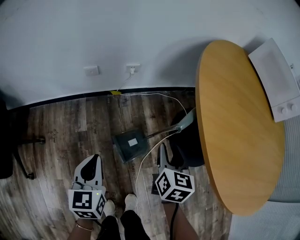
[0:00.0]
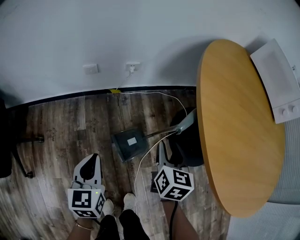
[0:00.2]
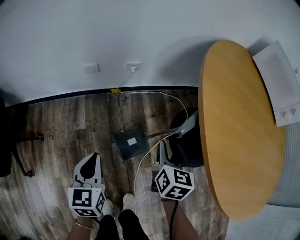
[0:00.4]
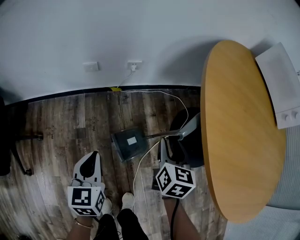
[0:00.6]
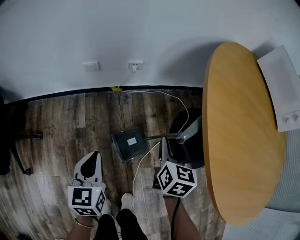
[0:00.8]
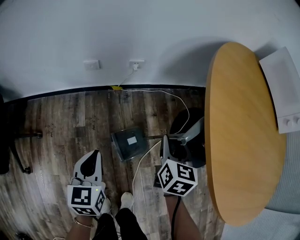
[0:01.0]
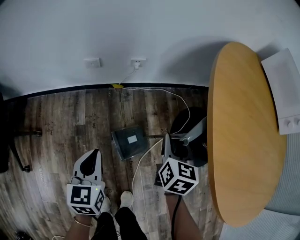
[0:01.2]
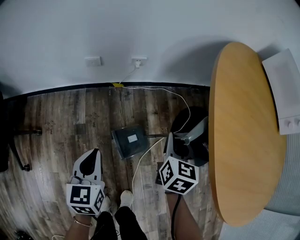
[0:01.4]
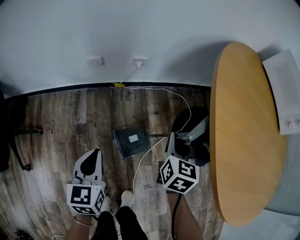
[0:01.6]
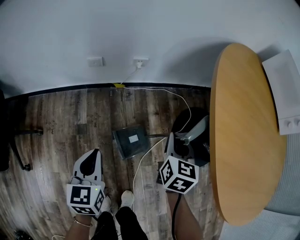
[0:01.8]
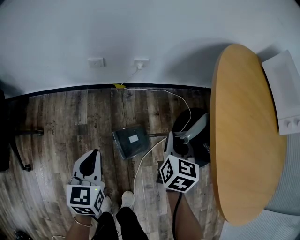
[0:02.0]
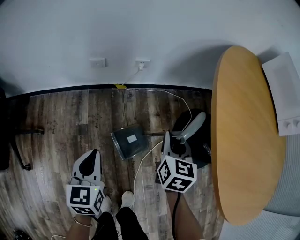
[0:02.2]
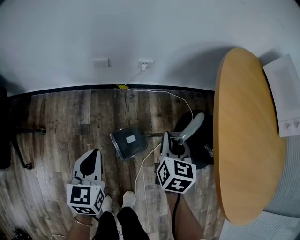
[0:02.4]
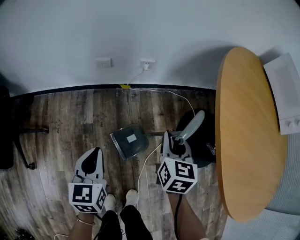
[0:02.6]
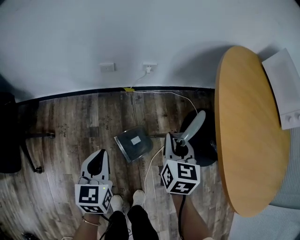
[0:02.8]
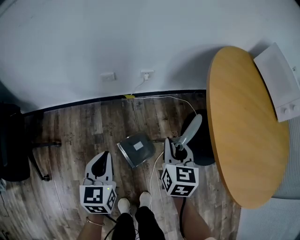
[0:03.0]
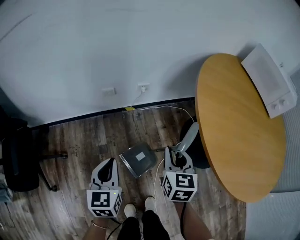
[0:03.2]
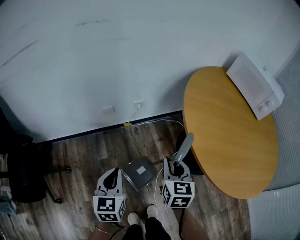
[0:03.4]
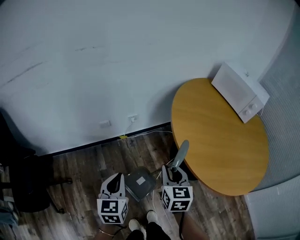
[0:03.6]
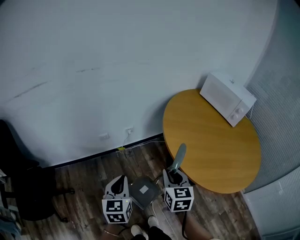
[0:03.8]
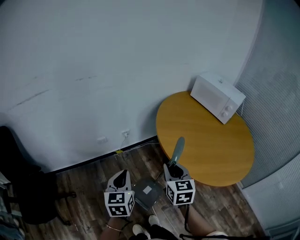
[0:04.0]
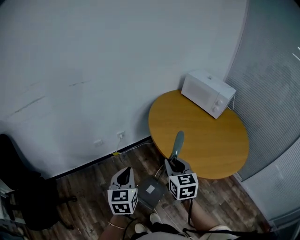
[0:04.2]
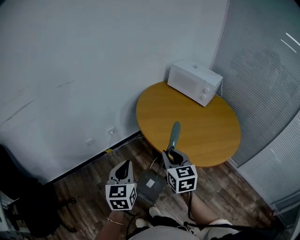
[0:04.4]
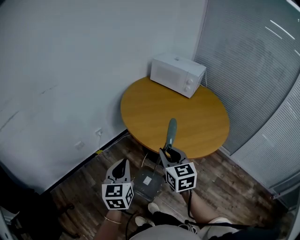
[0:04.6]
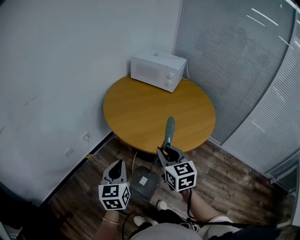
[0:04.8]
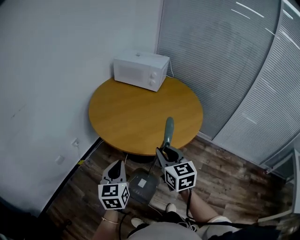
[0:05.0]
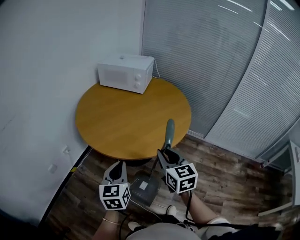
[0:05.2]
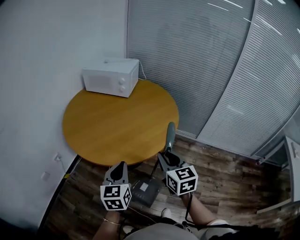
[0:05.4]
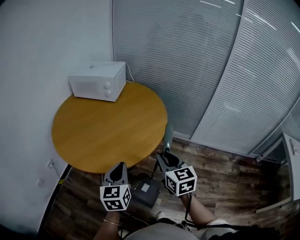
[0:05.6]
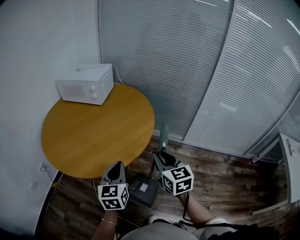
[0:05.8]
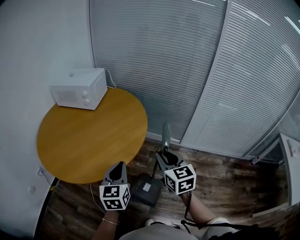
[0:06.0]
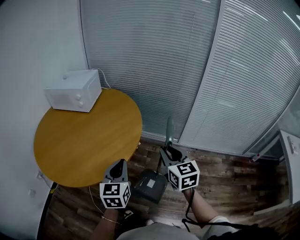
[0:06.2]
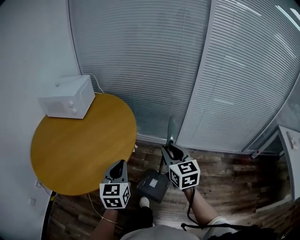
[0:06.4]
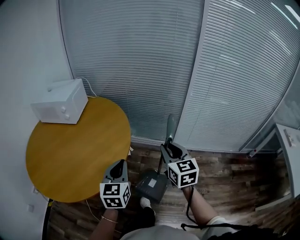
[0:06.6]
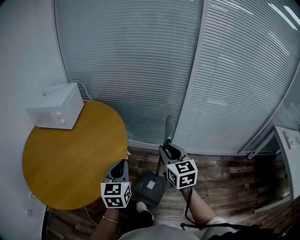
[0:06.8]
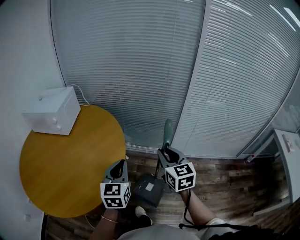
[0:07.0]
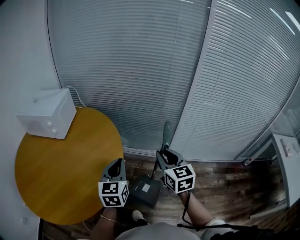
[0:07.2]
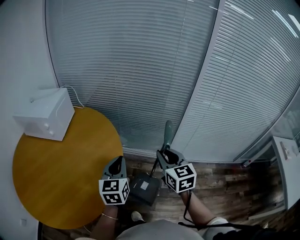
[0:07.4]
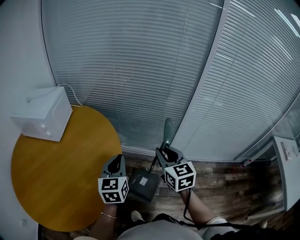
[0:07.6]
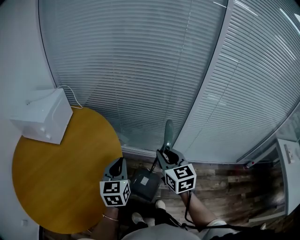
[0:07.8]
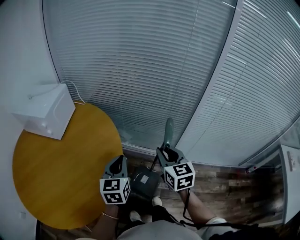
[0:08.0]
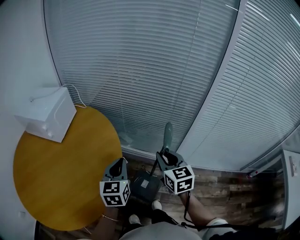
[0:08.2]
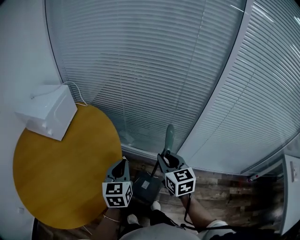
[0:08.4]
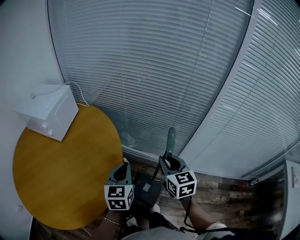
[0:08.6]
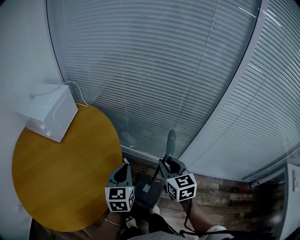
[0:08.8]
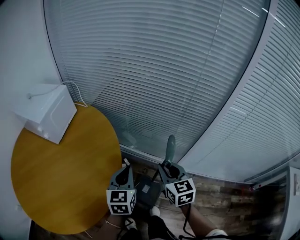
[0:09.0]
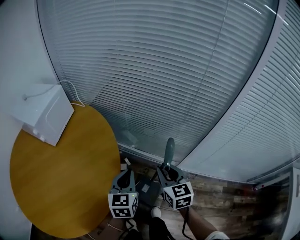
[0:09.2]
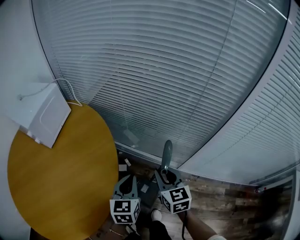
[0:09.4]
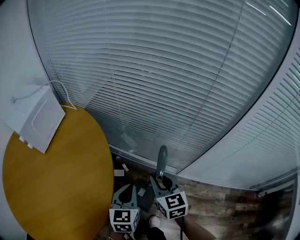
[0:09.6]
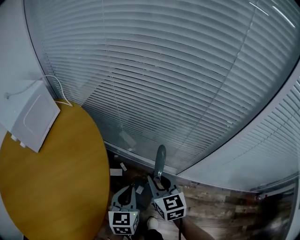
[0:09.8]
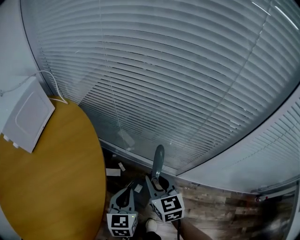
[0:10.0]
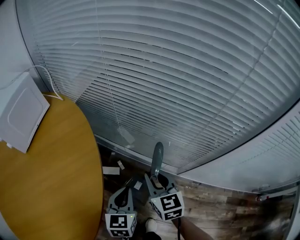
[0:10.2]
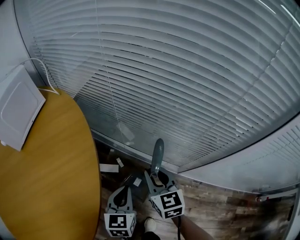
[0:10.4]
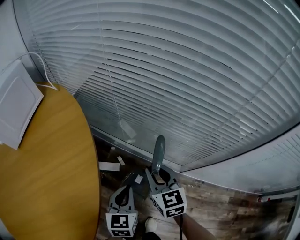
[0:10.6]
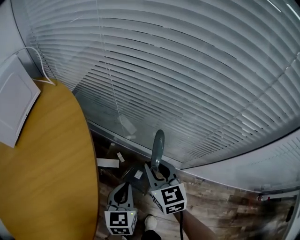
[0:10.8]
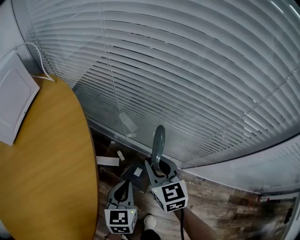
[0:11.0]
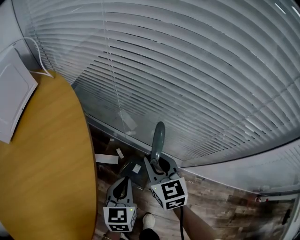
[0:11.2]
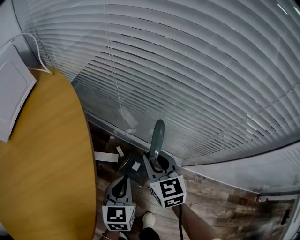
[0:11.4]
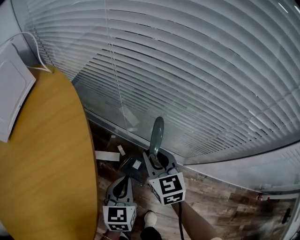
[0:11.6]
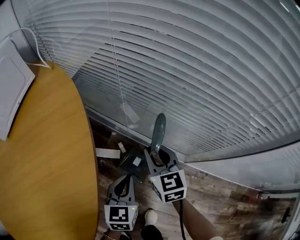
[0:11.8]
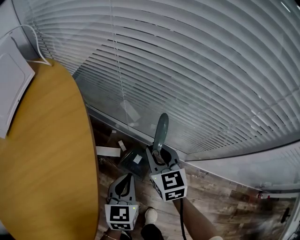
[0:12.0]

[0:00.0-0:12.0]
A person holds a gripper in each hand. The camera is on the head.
0:00.0 to 0:01.6: The right gripper moves forward, roughly 5 cm.
0:01.6 to 0:03.0: The left gripper shifts roughly 5 cm upward; the right gripper travels to the left and upward by about 10 cm.
0:03.0 to 0:04.4: The right gripper moves upward, backward and to the right, some 35 cm. Meanwhile the left gripper shifts approximately 35 cm upward and to the right, and rotates approximately 30 degrees.
0:04.4 to 0:06.0: Both grippers are carried roughly 50 cm. The left gripper swivels some 30 degrees; the right gripper swivels roughly 30 degrees.
0:06.0 to 0:07.6: The grippers both shift forward and to the right by some 30 cm.
0:07.6 to 0:09.0: The right gripper travels forward and downward by roughly 10 cm; the left gripper moves forward, to the right and downward, some 10 cm.
0:09.0 to 0:10.4: The left gripper is displaced downward by roughly 20 cm. The right gripper travels downward and forward by about 25 cm.
0:10.4 to 0:12.0: The right gripper moves downward and forward, some 10 cm. The left gripper travels downward by roughly 5 cm.

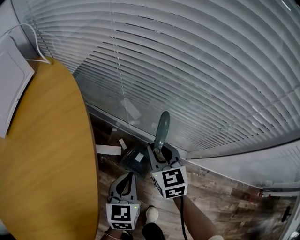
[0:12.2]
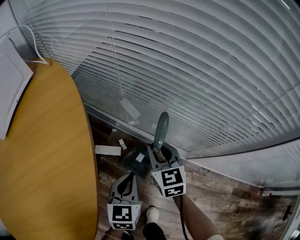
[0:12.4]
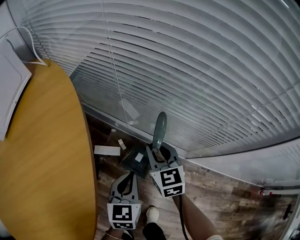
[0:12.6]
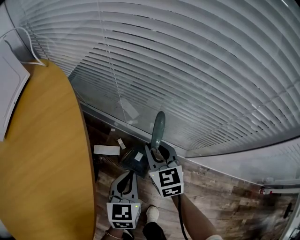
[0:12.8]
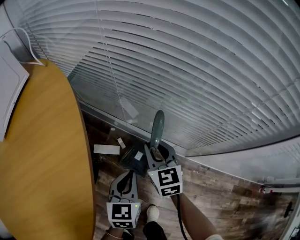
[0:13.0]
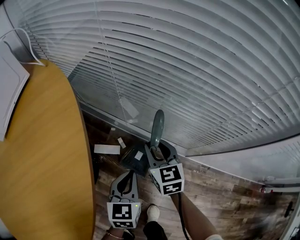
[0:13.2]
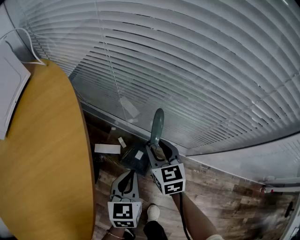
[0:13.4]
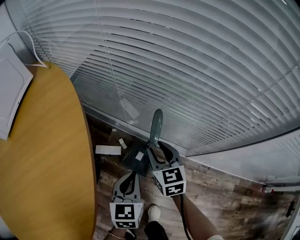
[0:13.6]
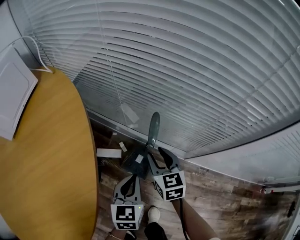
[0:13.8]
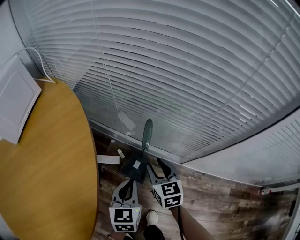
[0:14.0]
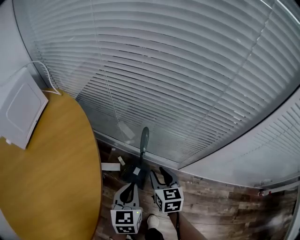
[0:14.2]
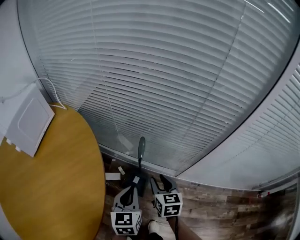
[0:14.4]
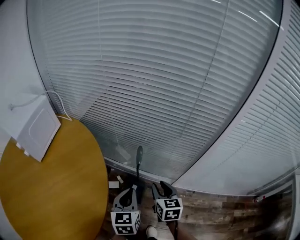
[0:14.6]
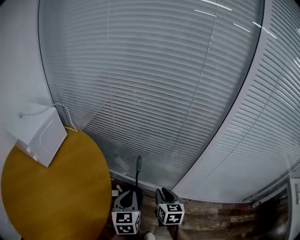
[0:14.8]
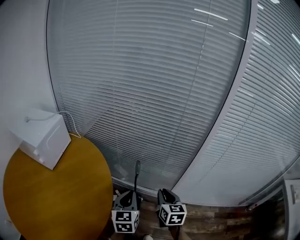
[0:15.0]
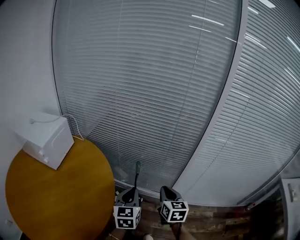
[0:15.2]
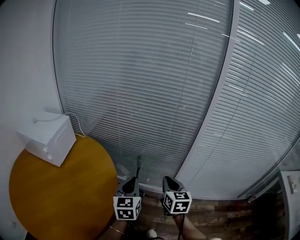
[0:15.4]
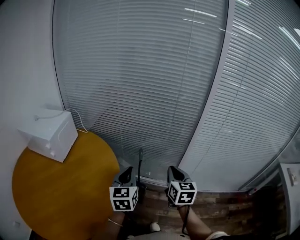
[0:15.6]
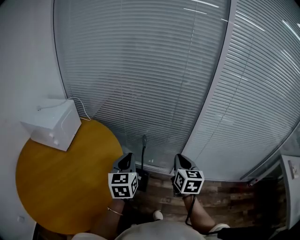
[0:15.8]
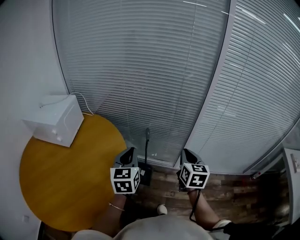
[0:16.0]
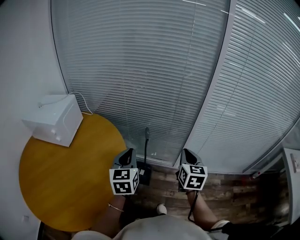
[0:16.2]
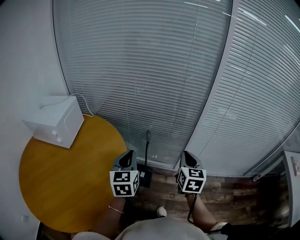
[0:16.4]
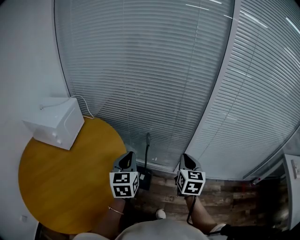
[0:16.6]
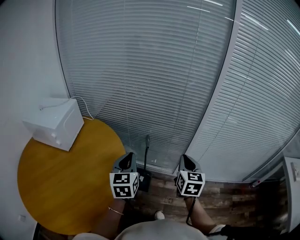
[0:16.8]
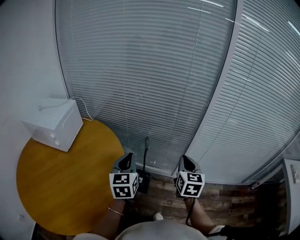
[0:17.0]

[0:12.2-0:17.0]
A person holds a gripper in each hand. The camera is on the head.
0:12.2 to 0:13.8: The right gripper changes place by about 5 cm.
0:13.8 to 0:15.4: The right gripper shifts about 40 cm upward and backward, turns by about 30 degrees, and closes, while the left gripper travels upward by approximately 35 cm, and turns by roughly 20 degrees.
0:15.4 to 0:17.0: The left gripper moves to the left, approximately 5 cm.

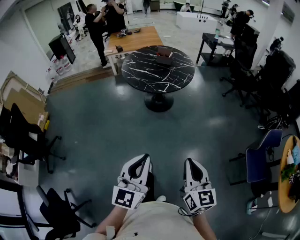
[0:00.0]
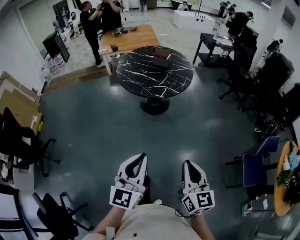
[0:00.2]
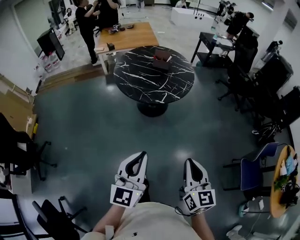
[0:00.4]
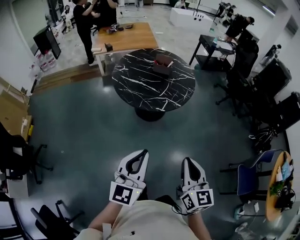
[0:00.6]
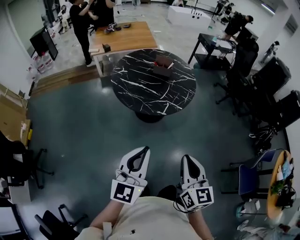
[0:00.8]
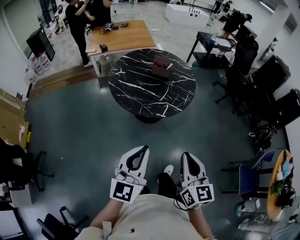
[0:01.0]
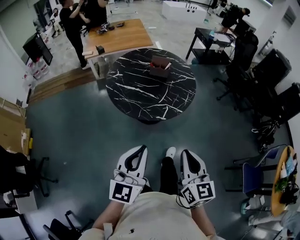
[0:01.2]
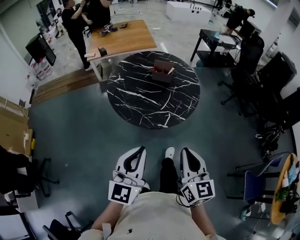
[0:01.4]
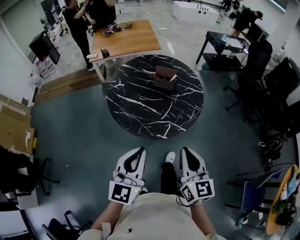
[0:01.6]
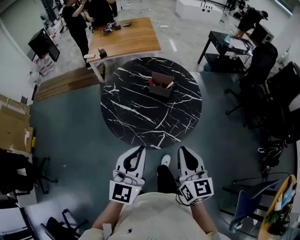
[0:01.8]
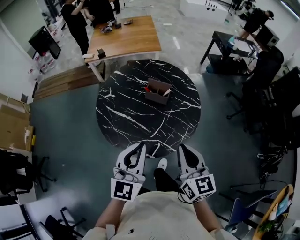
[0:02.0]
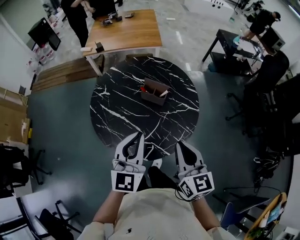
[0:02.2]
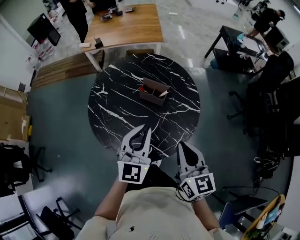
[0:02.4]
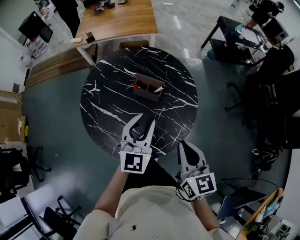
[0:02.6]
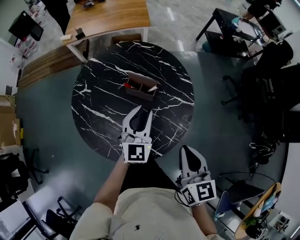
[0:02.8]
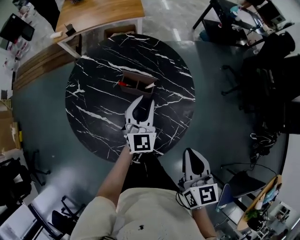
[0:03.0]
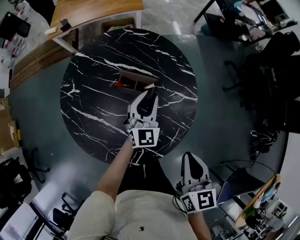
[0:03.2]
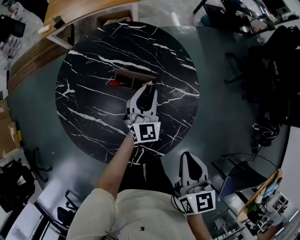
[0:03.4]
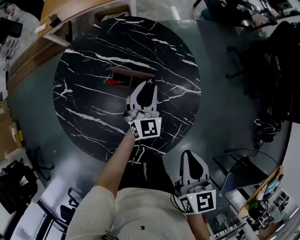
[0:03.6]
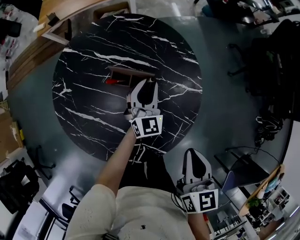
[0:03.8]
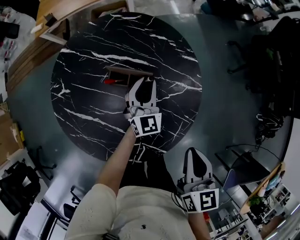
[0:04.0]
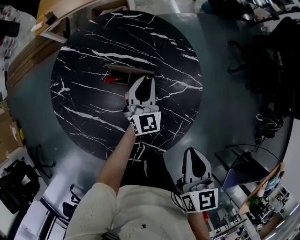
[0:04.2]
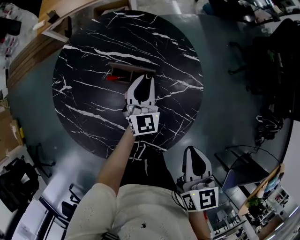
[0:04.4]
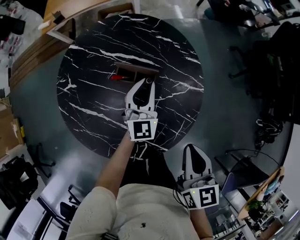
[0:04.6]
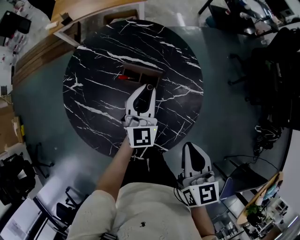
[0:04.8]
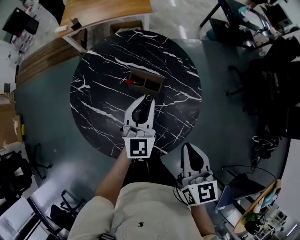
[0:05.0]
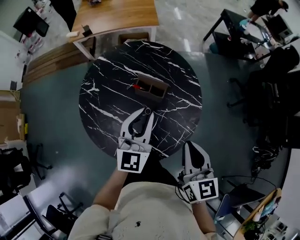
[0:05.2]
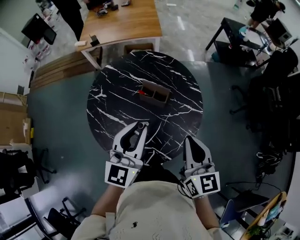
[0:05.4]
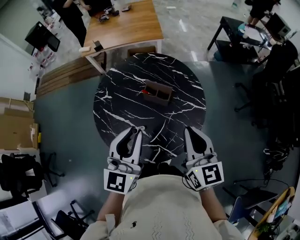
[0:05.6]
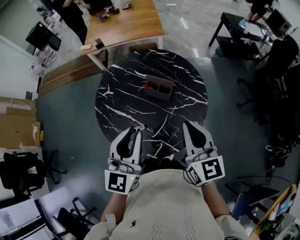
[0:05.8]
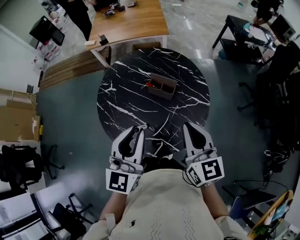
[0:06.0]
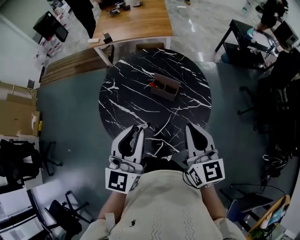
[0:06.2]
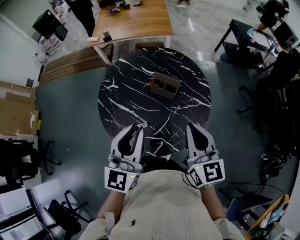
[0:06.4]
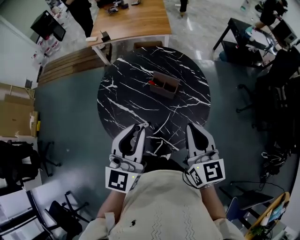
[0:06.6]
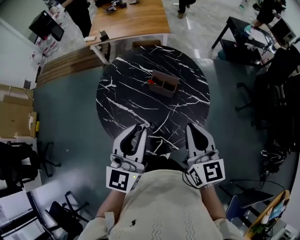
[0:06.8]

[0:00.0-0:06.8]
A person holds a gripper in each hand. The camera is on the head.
0:00.0 to 0:01.4: The two grippers travel together, forward, approximately 50 cm.
0:01.4 to 0:02.8: Both grippers are carried forward and to the right, approximately 50 cm. The left gripper rotates approximately 20 degrees, and opens.
0:02.8 to 0:04.0: The right gripper shifts roughly 10 cm downward and forward, while the left gripper goes some 20 cm downward and forward.
0:04.0 to 0:05.4: The left gripper shifts some 35 cm upward and backward, and turns by about 30 degrees, while the right gripper goes about 15 cm upward and to the left, and swivels some 30 degrees.
0:05.4 to 0:06.8: The right gripper moves roughly 5 cm. Meanwhile the left gripper moves backward, roughly 10 cm.
